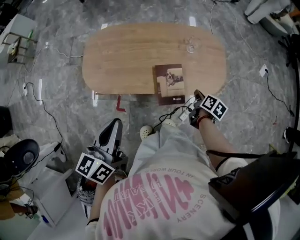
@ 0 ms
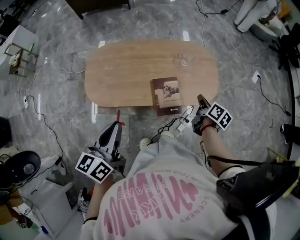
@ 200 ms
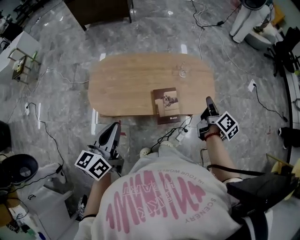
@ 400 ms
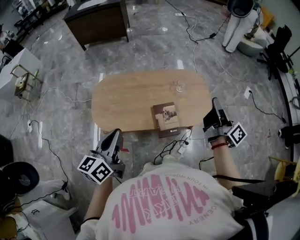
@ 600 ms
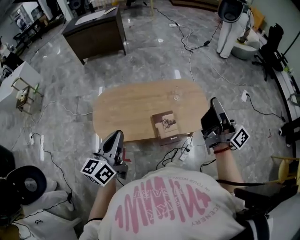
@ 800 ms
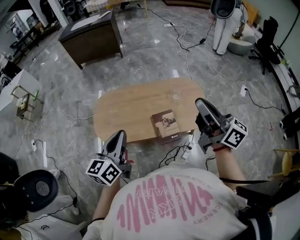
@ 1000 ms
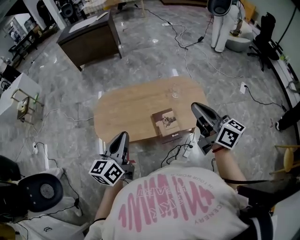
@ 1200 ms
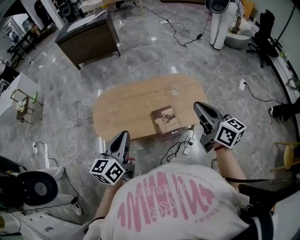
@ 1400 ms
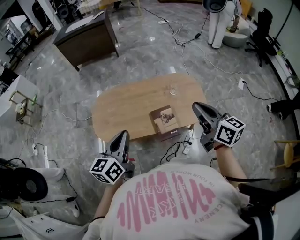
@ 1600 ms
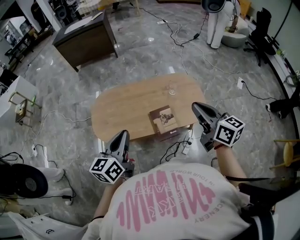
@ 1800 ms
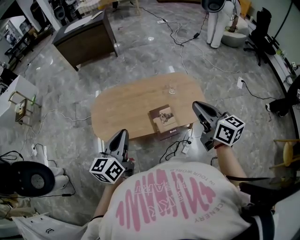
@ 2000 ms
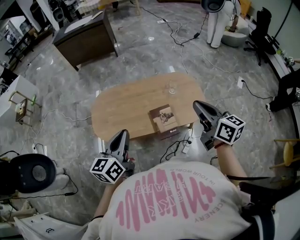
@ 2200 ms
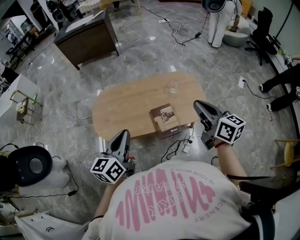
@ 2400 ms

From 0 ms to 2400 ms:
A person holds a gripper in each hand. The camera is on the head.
From 0 ms to 1200 ms: The left gripper moves upward, roughly 5 cm. The right gripper is displaced upward by roughly 40 cm, and angles its fingers upward, by some 50 degrees.
From 1200 ms to 2400 ms: The right gripper ends up approximately 5 cm from where it was.

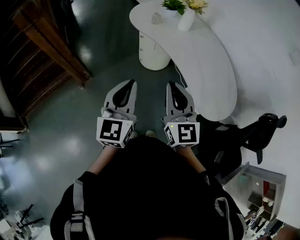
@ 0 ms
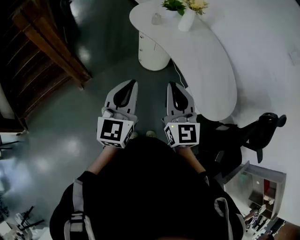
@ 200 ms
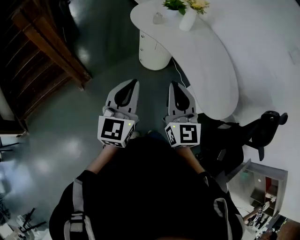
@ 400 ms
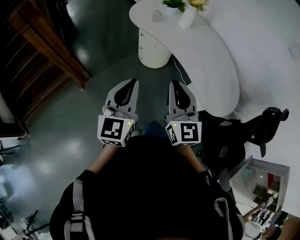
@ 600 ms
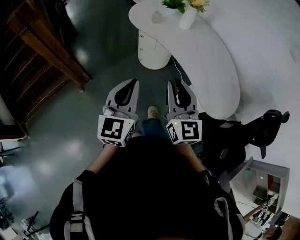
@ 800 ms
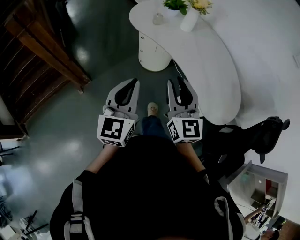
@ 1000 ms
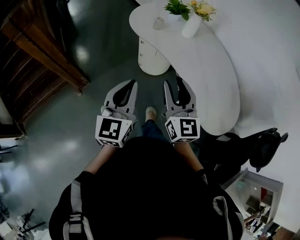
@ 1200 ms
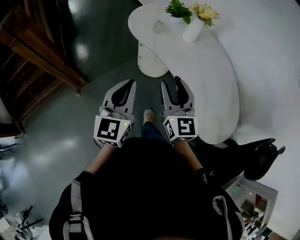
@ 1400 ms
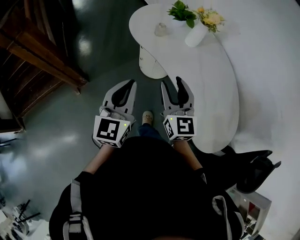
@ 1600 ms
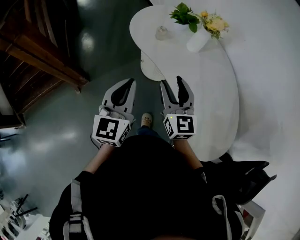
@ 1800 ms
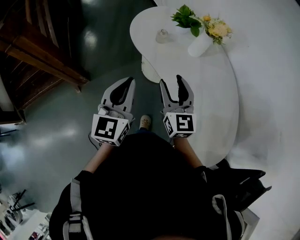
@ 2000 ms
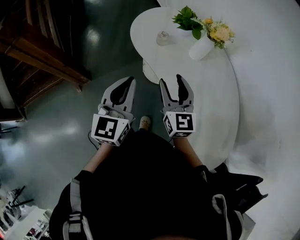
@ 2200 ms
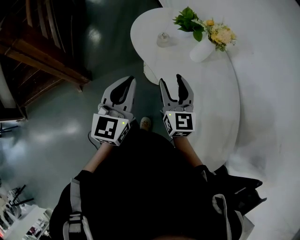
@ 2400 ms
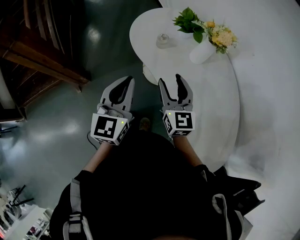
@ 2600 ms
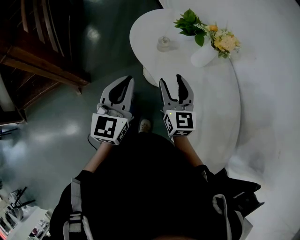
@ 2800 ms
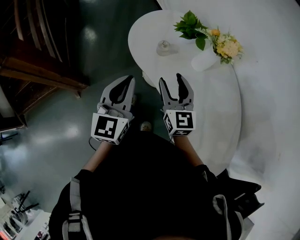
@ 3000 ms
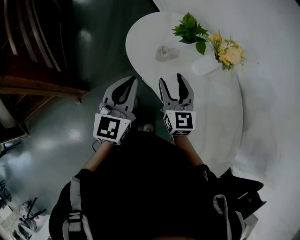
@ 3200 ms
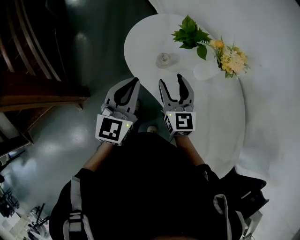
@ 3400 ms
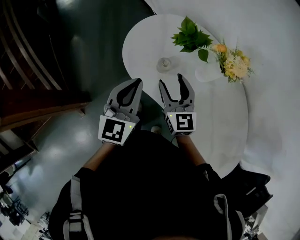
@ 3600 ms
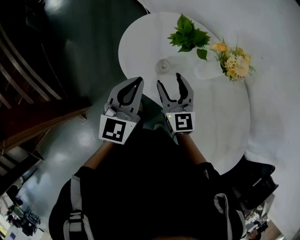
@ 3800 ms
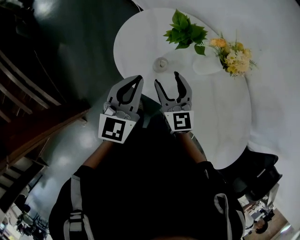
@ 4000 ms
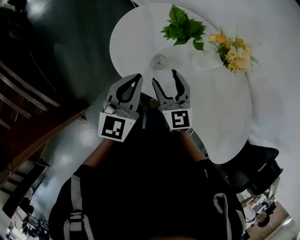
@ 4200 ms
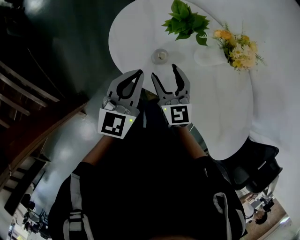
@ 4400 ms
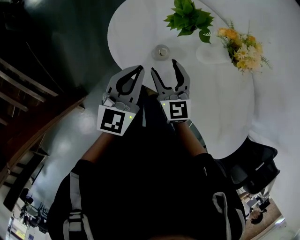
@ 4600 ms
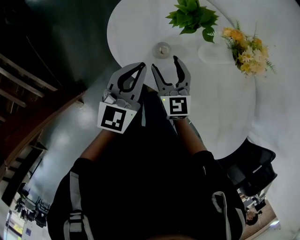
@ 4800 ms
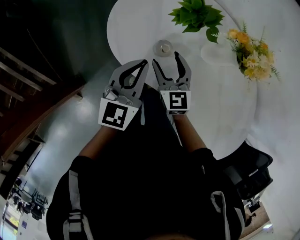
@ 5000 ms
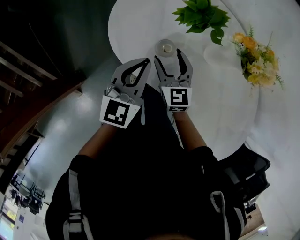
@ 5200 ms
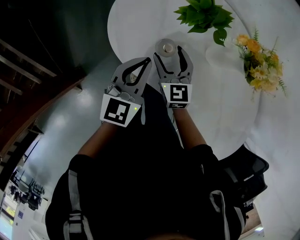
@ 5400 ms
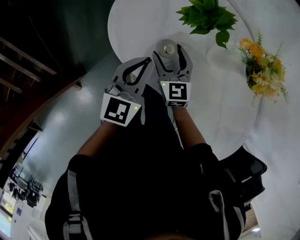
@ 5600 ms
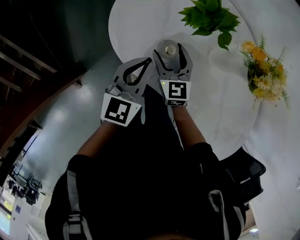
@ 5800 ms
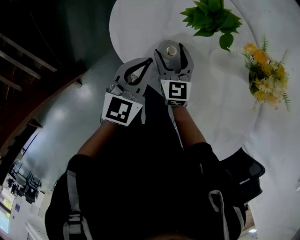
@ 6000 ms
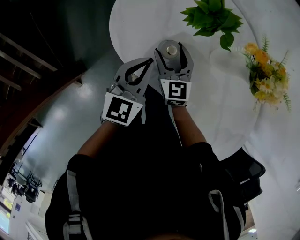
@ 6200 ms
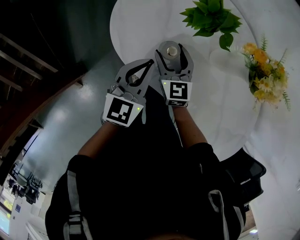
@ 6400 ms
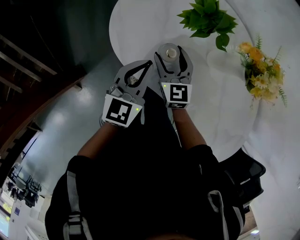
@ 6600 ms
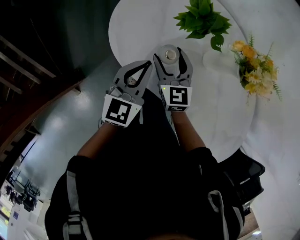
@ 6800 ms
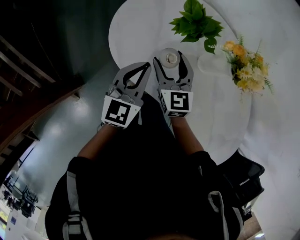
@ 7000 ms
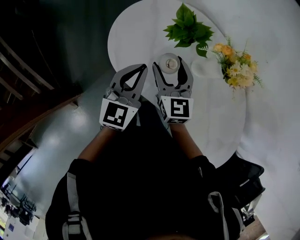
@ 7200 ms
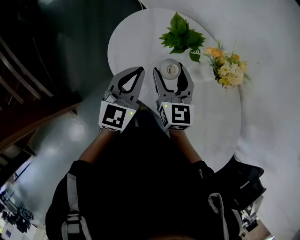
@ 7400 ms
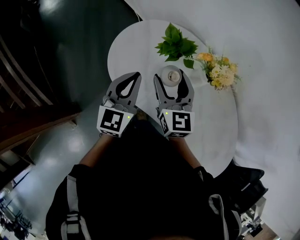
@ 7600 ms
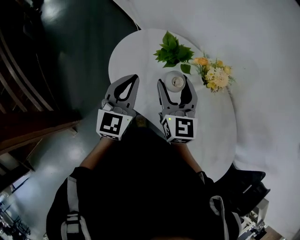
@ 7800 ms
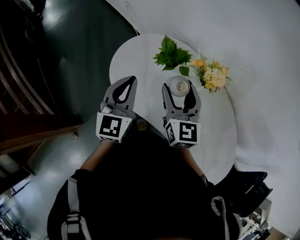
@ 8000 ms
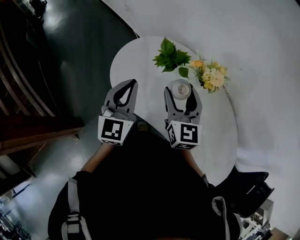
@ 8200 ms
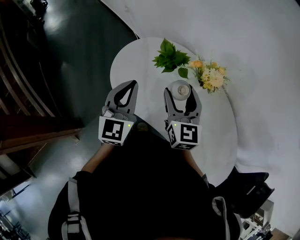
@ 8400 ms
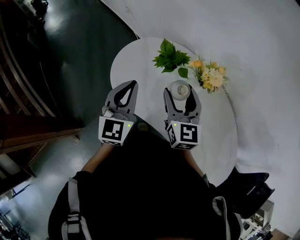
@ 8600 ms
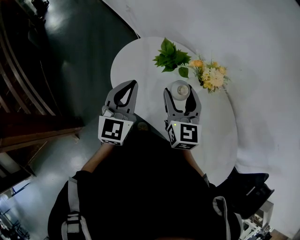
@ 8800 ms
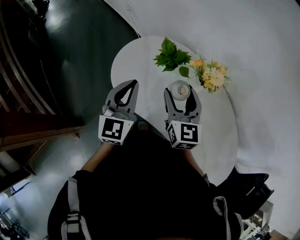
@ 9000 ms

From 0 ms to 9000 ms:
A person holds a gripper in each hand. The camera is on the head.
From 0 ms to 1600 ms: The two grippers go some 20 cm forward. The right gripper opens its fingers.
From 1600 ms to 3000 ms: Both grippers move forward, approximately 20 cm.
From 3000 ms to 4400 ms: The right gripper shifts about 15 cm forward, downward and to the left; the left gripper travels forward and downward by roughly 20 cm, and turns by roughly 30 degrees.
From 4400 ms to 6000 ms: The left gripper goes approximately 10 cm downward. The right gripper moves downward and forward, roughly 15 cm.
From 6000 ms to 7600 ms: The right gripper is displaced upward by some 20 cm, while the left gripper travels upward by some 15 cm.
From 7600 ms to 9000 ms: The left gripper shifts about 5 cm upward. Meanwhile the right gripper moves roughly 5 cm.

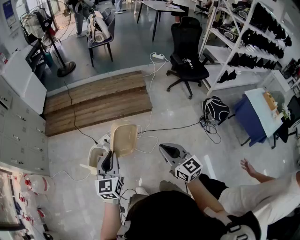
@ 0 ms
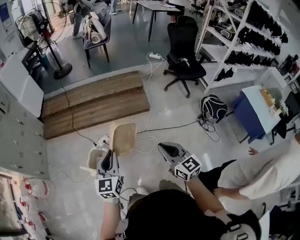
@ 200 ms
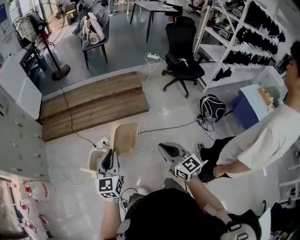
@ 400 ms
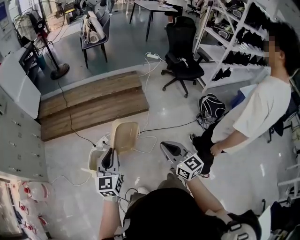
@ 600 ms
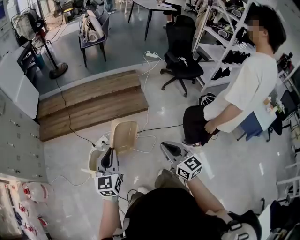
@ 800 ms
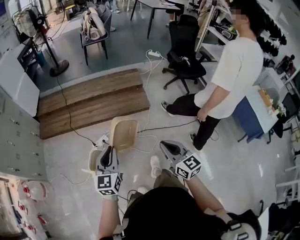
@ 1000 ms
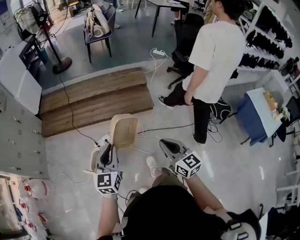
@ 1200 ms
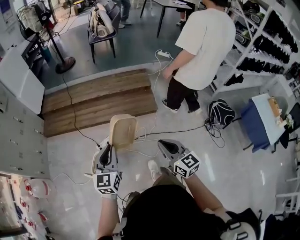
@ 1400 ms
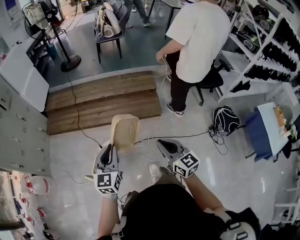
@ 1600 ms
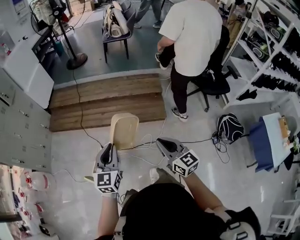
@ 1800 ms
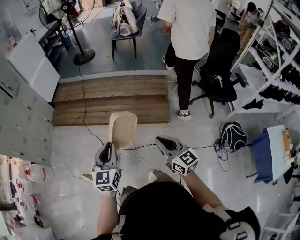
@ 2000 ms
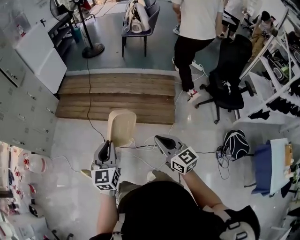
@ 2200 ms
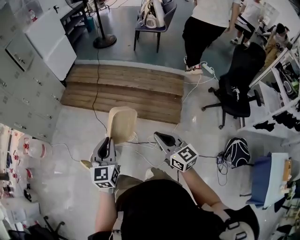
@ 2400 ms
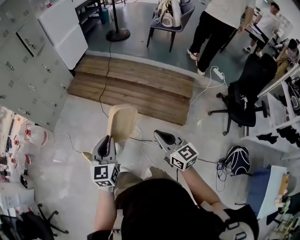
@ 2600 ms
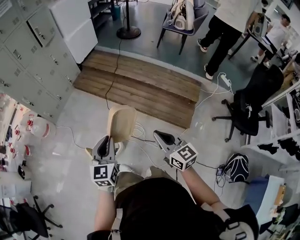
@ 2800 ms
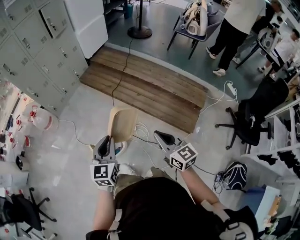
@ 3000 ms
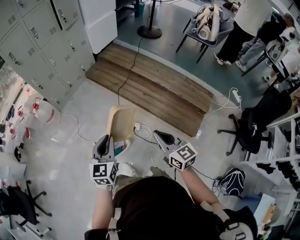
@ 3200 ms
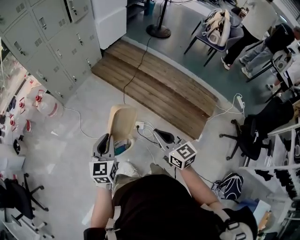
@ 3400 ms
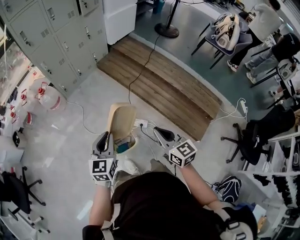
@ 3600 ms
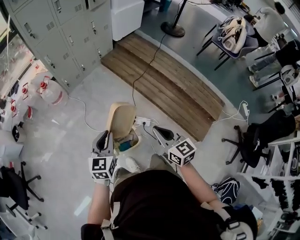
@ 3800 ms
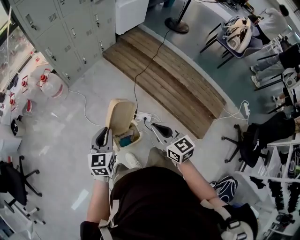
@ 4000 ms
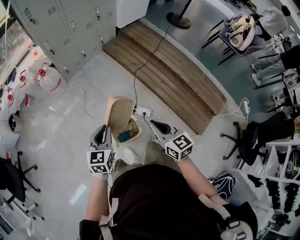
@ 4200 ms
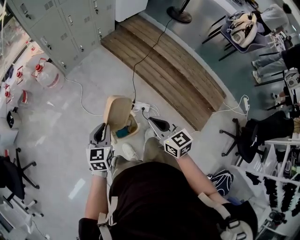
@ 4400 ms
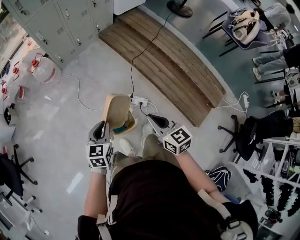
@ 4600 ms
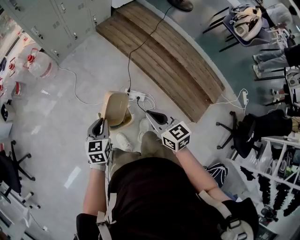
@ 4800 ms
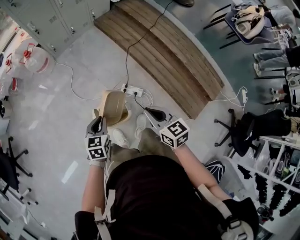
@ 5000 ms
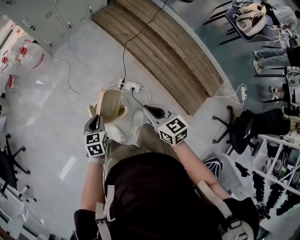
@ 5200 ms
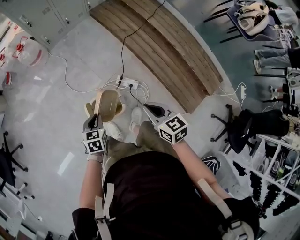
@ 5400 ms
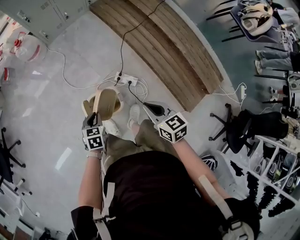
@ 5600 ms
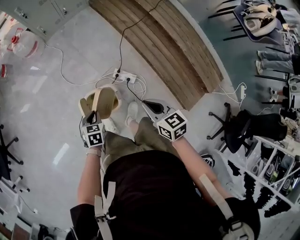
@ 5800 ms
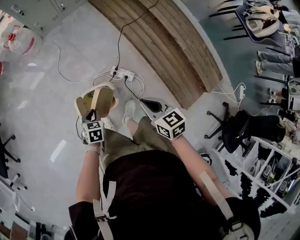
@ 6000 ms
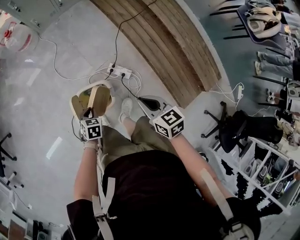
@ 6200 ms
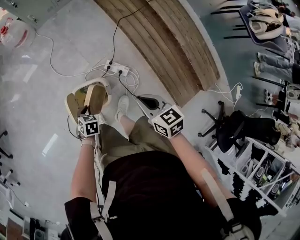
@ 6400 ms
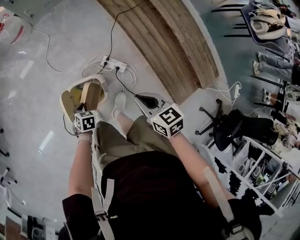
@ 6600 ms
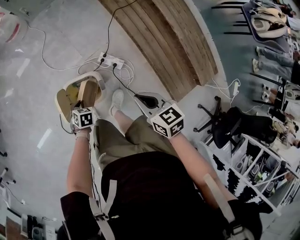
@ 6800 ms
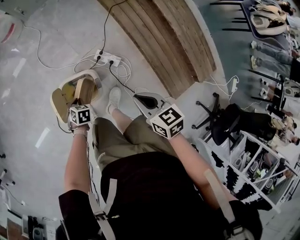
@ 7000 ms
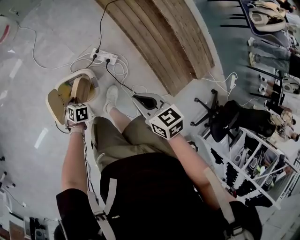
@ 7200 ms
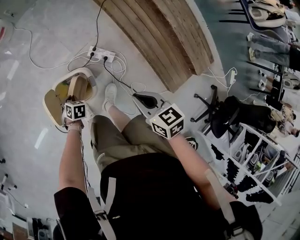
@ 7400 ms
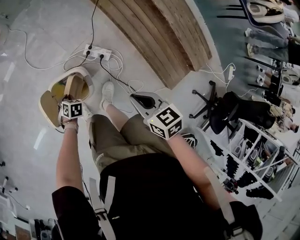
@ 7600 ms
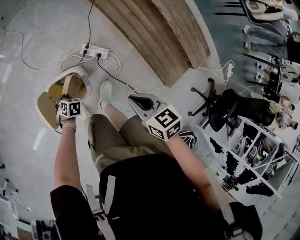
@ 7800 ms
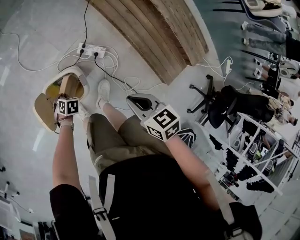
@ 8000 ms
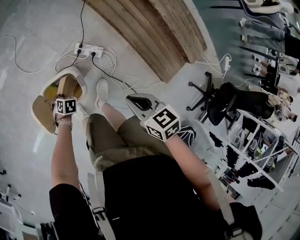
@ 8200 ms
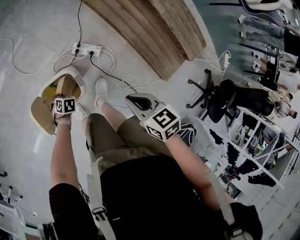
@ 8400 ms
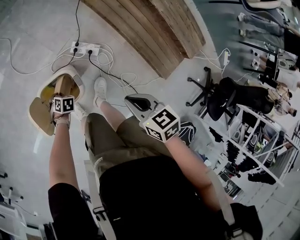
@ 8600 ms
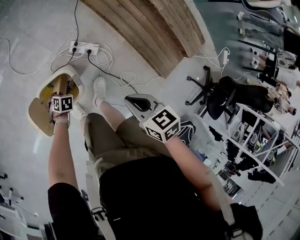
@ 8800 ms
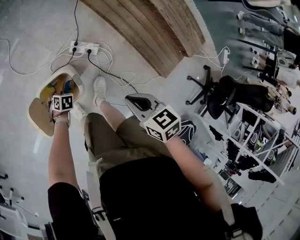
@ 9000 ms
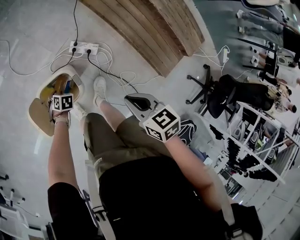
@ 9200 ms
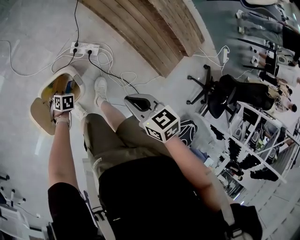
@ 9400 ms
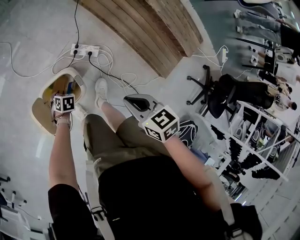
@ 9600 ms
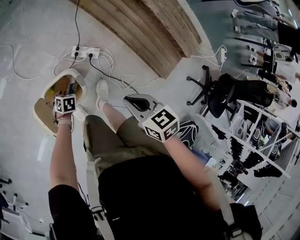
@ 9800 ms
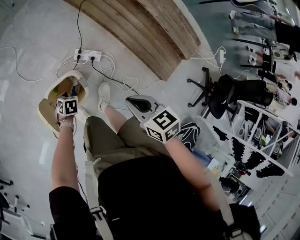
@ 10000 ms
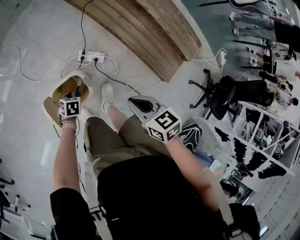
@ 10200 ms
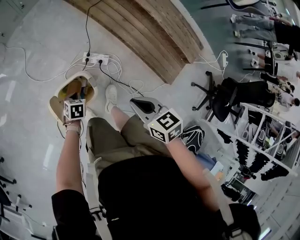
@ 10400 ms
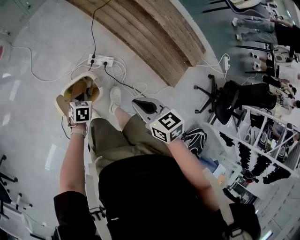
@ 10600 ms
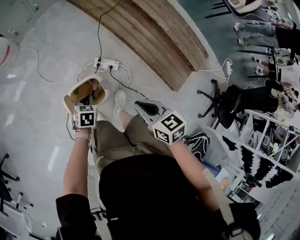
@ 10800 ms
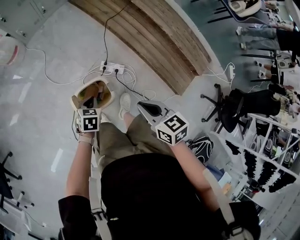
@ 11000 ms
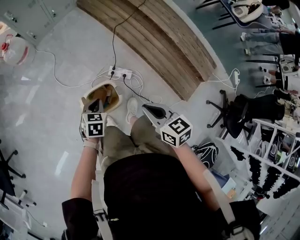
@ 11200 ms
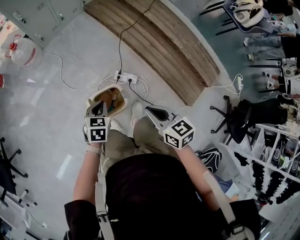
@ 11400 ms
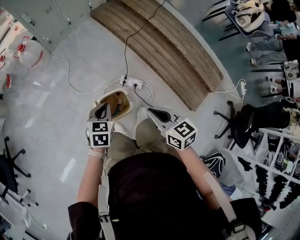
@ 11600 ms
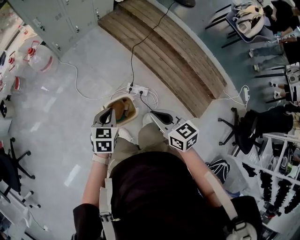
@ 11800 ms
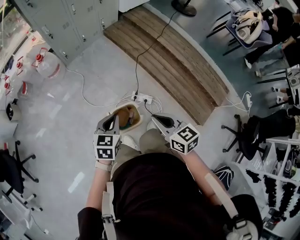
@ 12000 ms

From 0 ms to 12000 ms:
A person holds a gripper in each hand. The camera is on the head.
From 0 ms to 1600 ms: The two grippers go some 20 cm forward.
From 1600 ms to 3000 ms: The left gripper moves about 15 cm, and changes its angle by roughly 40 degrees. Meanwhile the right gripper shifts by approximately 25 cm, and swivels approximately 40 degrees.
From 3000 ms to 4400 ms: The right gripper shifts approximately 30 cm to the left and forward, and swivels roughly 20 degrees. The left gripper shifts roughly 30 cm to the left, downward and forward, and rotates about 20 degrees.
From 4400 ms to 6000 ms: The left gripper heads downward, covering approximately 25 cm, and angles its fingers downward, by roughly 40 degrees. The right gripper goes approximately 20 cm downward and to the right.
From 6000 ms to 7600 ms: The left gripper travels downward by approximately 20 cm, and swivels some 20 degrees. The right gripper heads downward, covering roughly 10 cm.
From 7600 ms to 9000 ms: The left gripper goes approximately 5 cm downward.
From 9000 ms to 10400 ms: The right gripper shifts approximately 5 cm upward, while the left gripper goes approximately 15 cm upward, and closes up.
From 10400 ms to 12000 ms: The right gripper goes some 25 cm upward and to the left, and turns by roughly 20 degrees. The left gripper is displaced upward by roughly 40 cm, and points its fingers about 30 degrees further upward.
